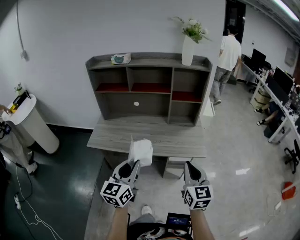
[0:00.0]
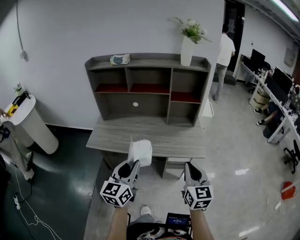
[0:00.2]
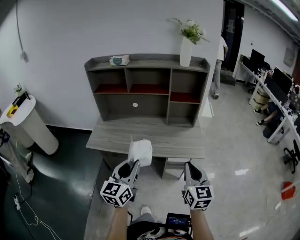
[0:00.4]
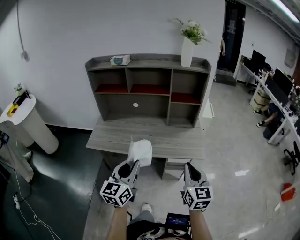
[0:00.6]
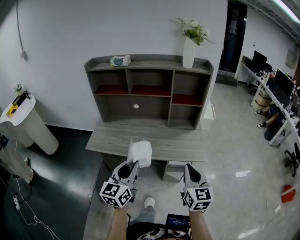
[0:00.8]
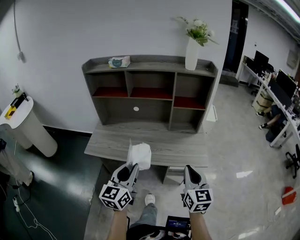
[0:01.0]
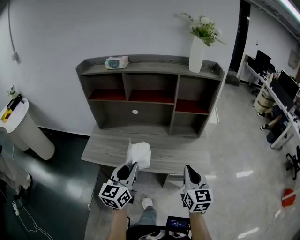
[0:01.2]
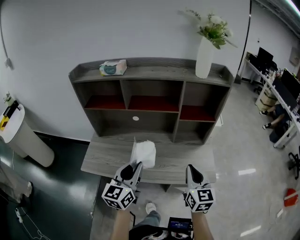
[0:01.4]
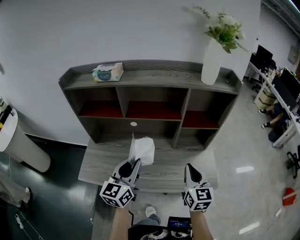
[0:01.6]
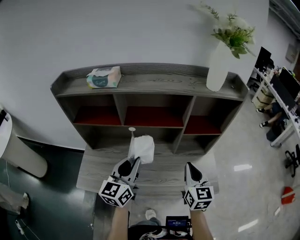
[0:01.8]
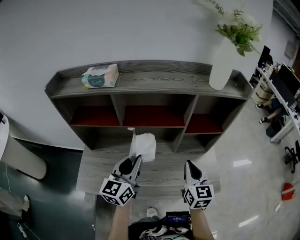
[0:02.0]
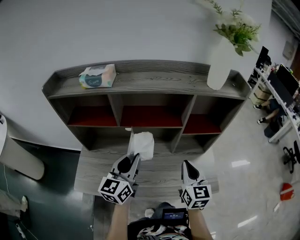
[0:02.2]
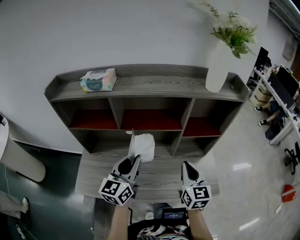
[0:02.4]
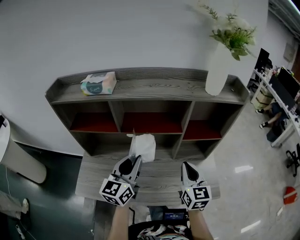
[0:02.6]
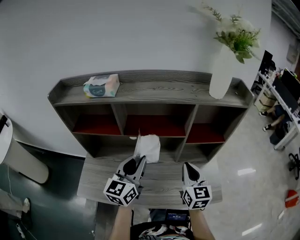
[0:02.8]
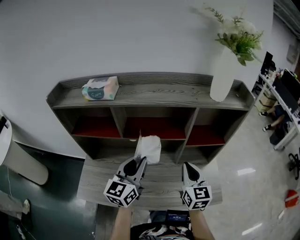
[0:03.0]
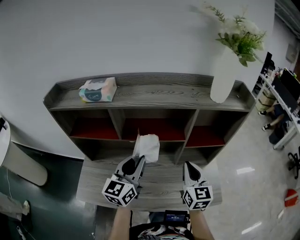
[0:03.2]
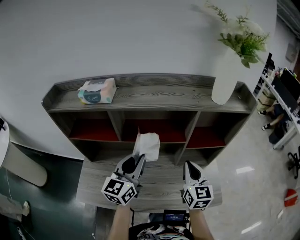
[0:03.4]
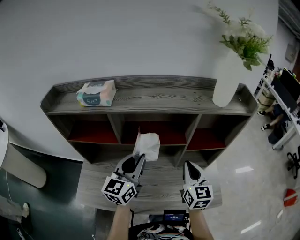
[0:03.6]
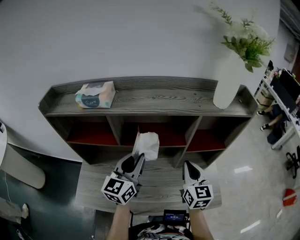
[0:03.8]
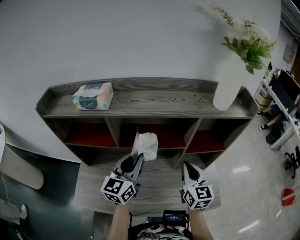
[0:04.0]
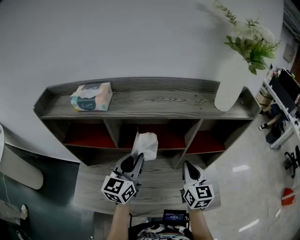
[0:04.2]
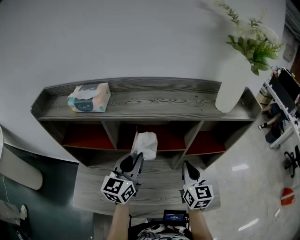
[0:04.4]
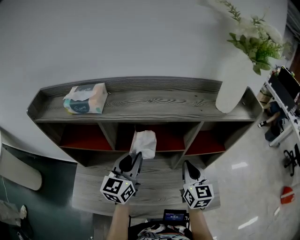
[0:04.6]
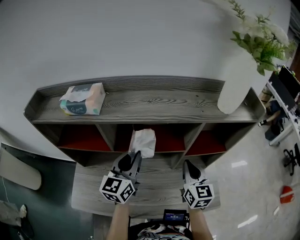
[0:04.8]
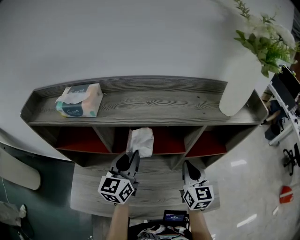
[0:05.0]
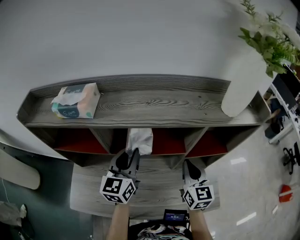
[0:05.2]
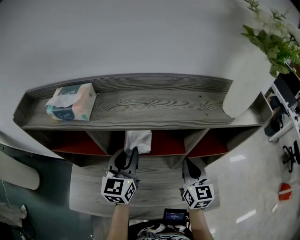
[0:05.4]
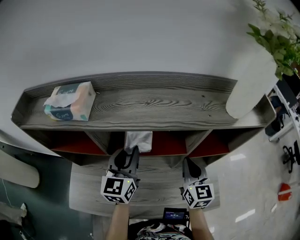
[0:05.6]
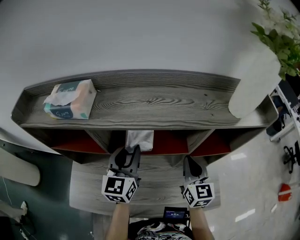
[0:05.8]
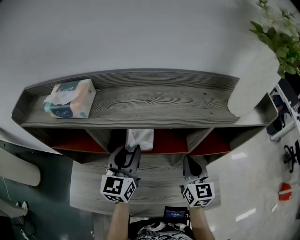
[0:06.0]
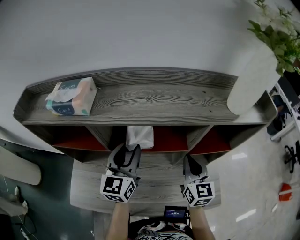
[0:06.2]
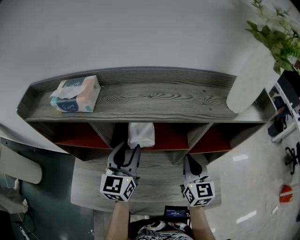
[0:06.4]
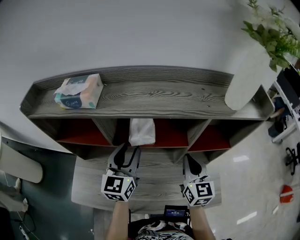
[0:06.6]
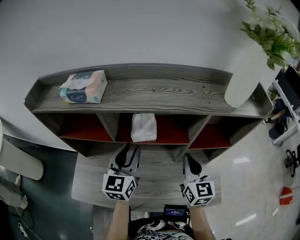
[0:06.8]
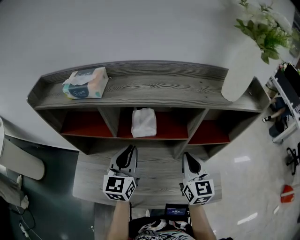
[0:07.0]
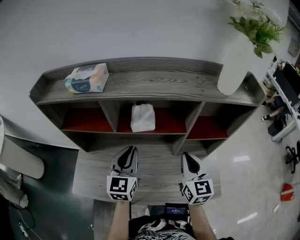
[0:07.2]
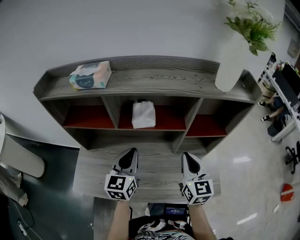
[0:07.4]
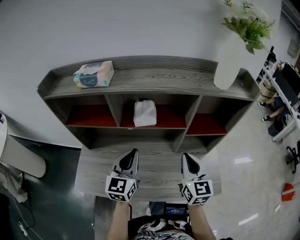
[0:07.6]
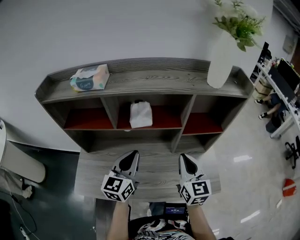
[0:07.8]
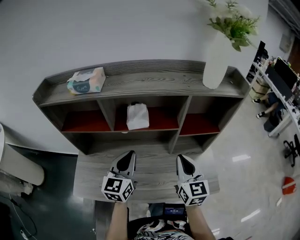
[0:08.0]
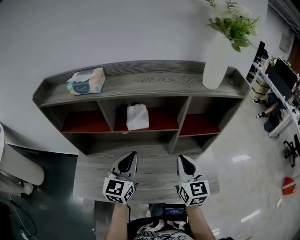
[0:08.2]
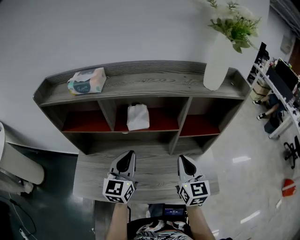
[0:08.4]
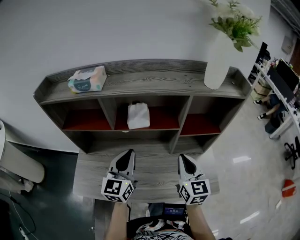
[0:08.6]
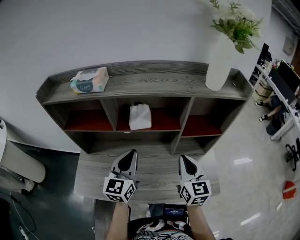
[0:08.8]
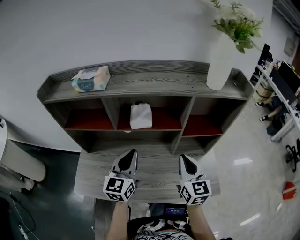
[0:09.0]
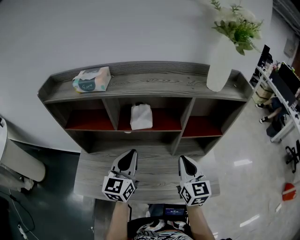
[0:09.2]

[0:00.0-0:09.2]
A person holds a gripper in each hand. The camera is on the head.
0.0 to 1.6 s: The two grippers go roughly 30 cm forward.
1.6 to 3.0 s: Both grippers travel together forward, approximately 10 cm.
3.0 to 4.6 s: Both grippers travel together forward, about 10 cm.
4.6 to 6.2 s: The grippers stay close to where they were, moving slightly.
6.2 to 7.6 s: The two grippers go roughly 10 cm backward. The left gripper closes its fingers.
7.6 to 9.2 s: The grippers make only small movements.

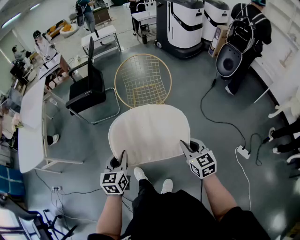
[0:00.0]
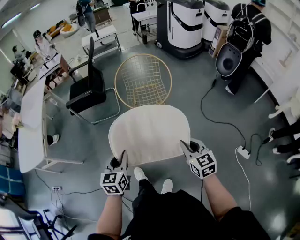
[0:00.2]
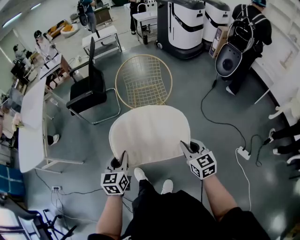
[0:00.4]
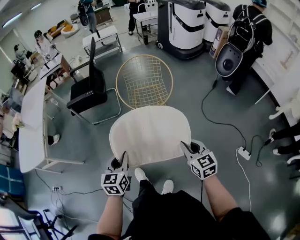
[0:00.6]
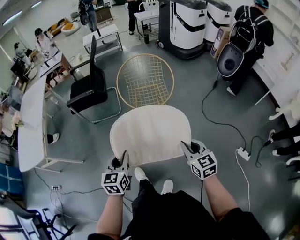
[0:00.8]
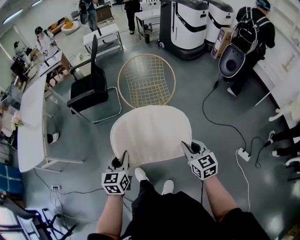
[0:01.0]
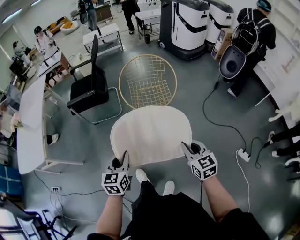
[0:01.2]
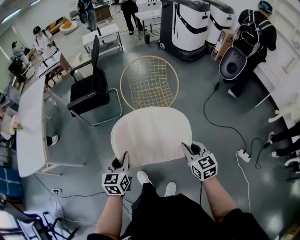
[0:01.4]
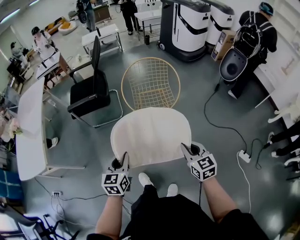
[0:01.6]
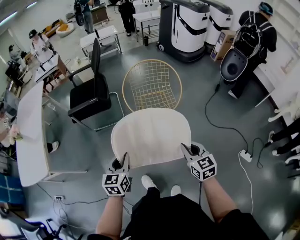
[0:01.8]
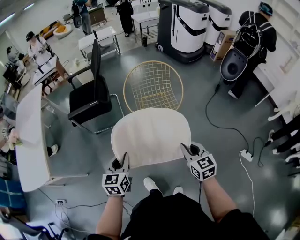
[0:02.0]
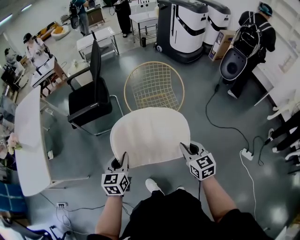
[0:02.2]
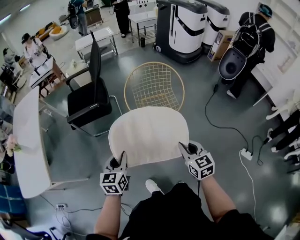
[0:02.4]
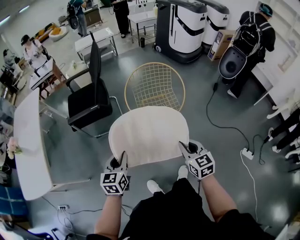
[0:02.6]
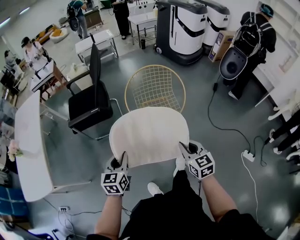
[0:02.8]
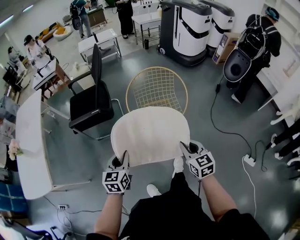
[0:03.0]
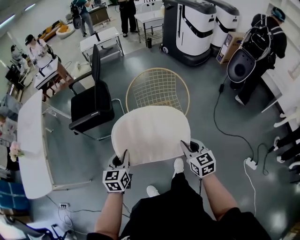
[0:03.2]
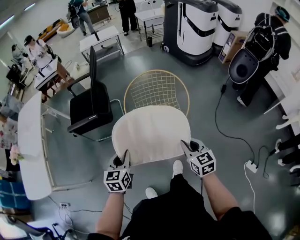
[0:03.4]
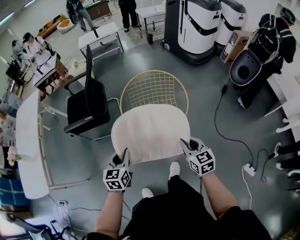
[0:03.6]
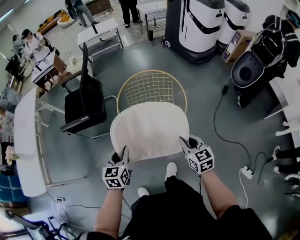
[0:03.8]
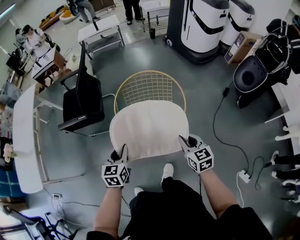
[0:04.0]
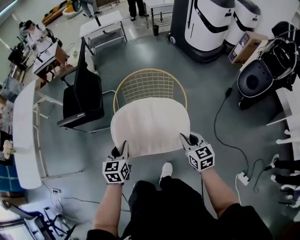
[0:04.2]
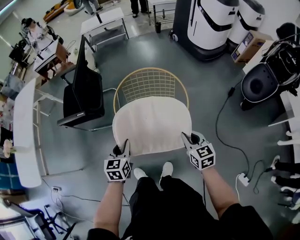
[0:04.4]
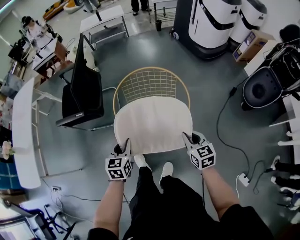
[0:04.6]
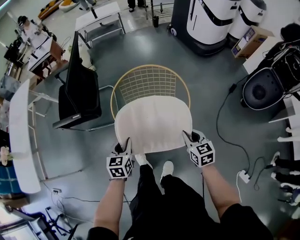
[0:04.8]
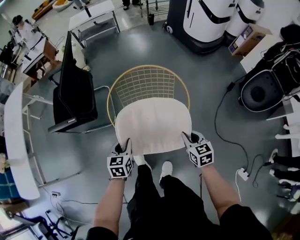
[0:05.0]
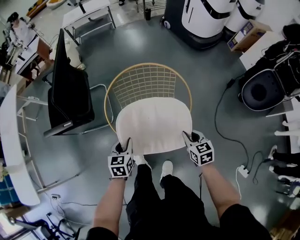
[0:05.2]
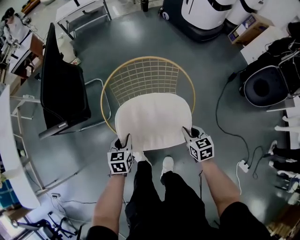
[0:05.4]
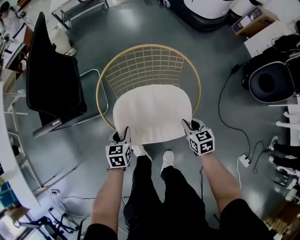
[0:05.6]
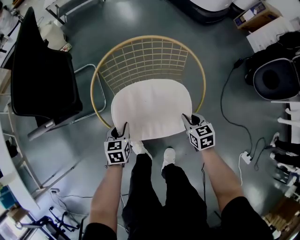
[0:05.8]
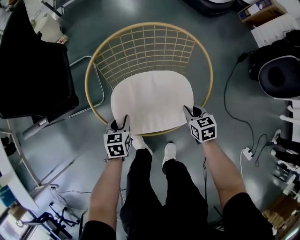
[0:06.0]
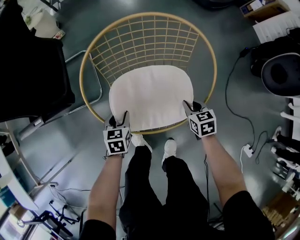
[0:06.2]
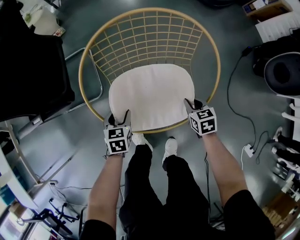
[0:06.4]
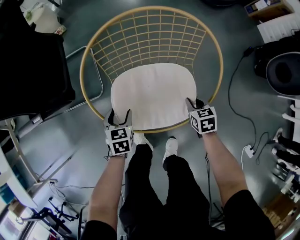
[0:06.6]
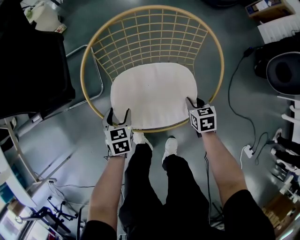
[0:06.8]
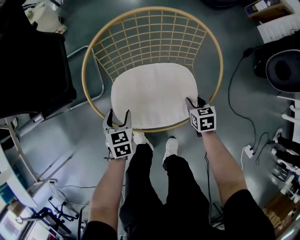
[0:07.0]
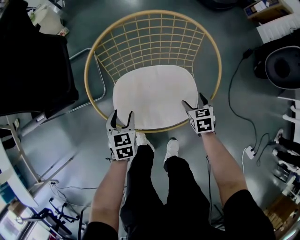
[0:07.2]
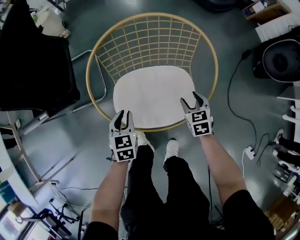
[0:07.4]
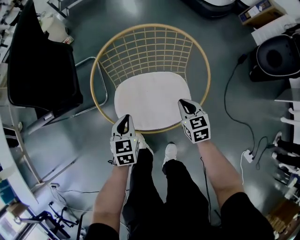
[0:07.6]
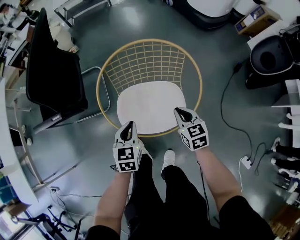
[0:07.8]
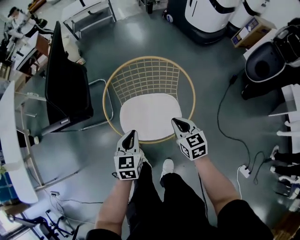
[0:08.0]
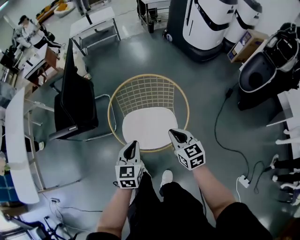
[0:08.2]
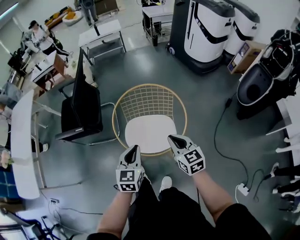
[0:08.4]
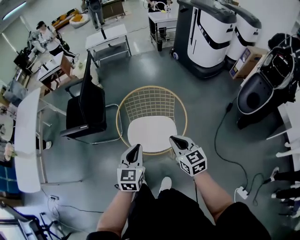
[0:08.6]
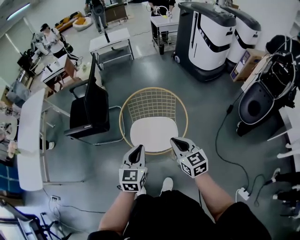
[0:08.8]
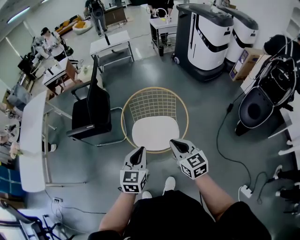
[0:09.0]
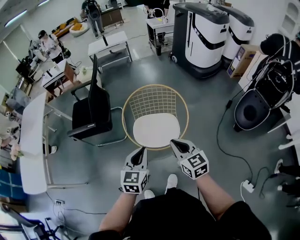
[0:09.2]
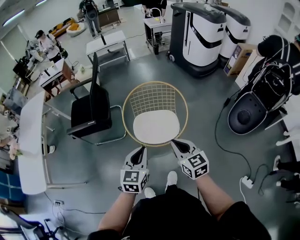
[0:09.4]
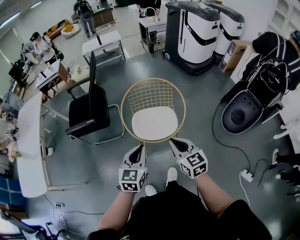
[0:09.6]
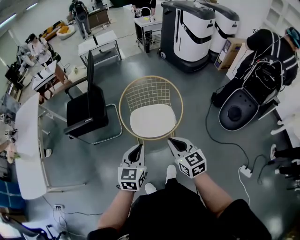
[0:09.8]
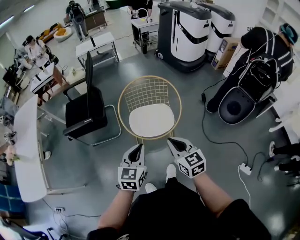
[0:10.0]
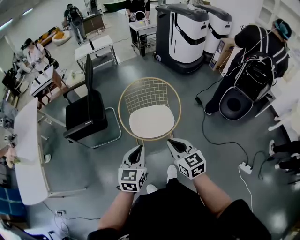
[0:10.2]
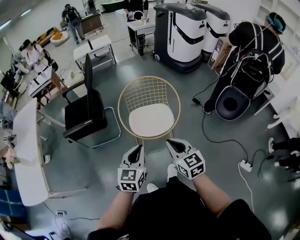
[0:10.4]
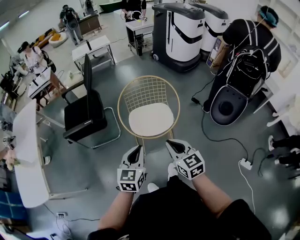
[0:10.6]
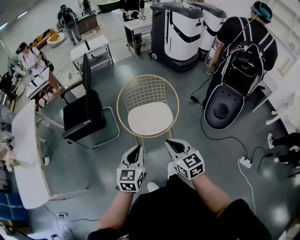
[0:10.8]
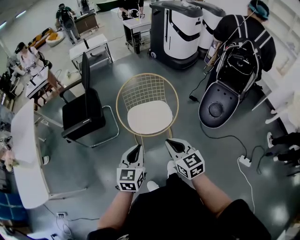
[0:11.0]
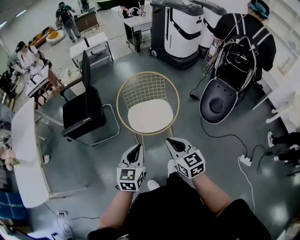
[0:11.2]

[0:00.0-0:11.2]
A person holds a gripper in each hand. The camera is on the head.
0.0 to 1.6 s: The grippers both shift forward and to the left by about 10 cm.
1.6 to 3.2 s: The two grippers go about 20 cm forward.
3.2 to 4.8 s: Both grippers move forward, to the right and downward, about 30 cm.
4.8 to 6.4 s: The right gripper travels downward by about 30 cm, and swivels some 20 degrees. Meanwhile the left gripper heads downward and forward, covering roughly 35 cm, and opens its fingers.
6.4 to 8.0 s: The two grippers go roughly 25 cm upward. The right gripper rotates about 20 degrees, and opens and closes again. The left gripper rotates about 20 degrees, and closes up.
8.0 to 9.6 s: Both grippers move backward and upward, some 35 cm.
9.6 to 11.2 s: Both grippers travel together backward, roughly 5 cm.

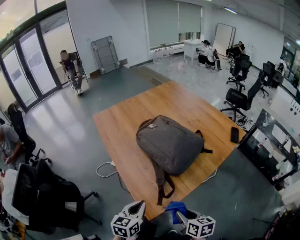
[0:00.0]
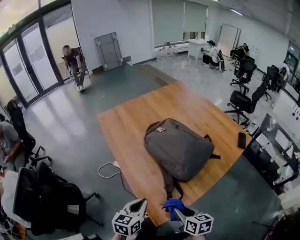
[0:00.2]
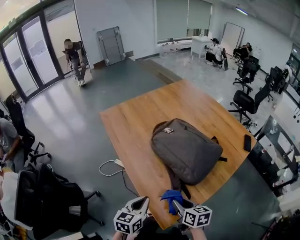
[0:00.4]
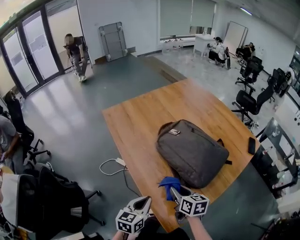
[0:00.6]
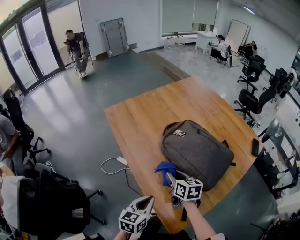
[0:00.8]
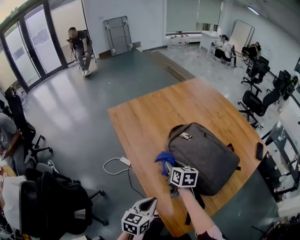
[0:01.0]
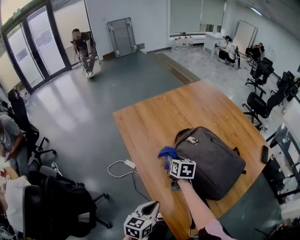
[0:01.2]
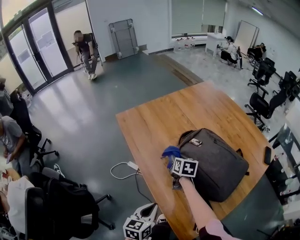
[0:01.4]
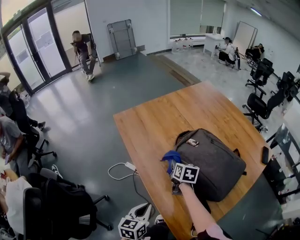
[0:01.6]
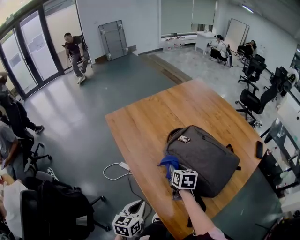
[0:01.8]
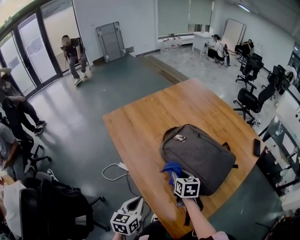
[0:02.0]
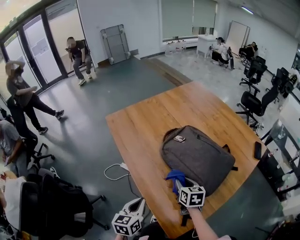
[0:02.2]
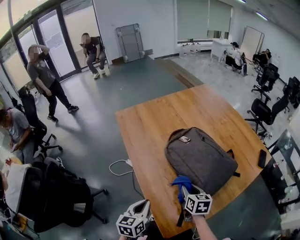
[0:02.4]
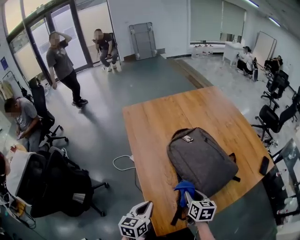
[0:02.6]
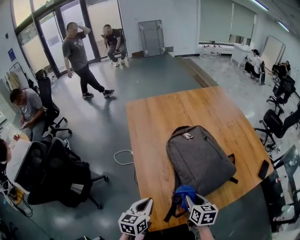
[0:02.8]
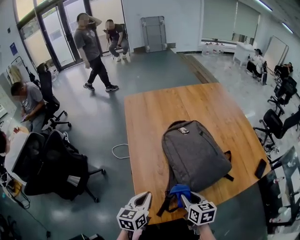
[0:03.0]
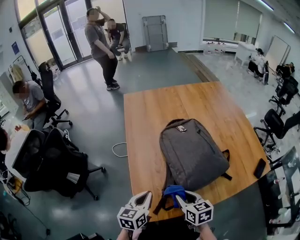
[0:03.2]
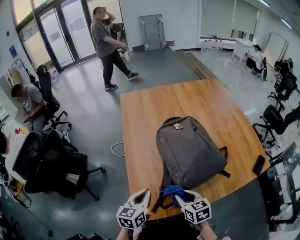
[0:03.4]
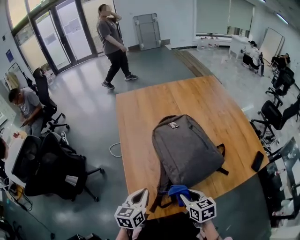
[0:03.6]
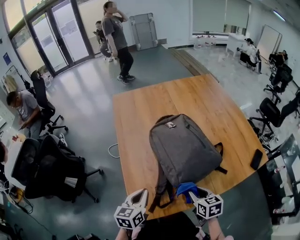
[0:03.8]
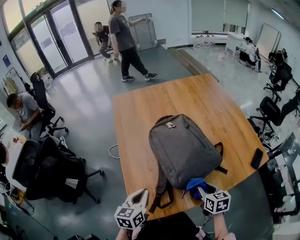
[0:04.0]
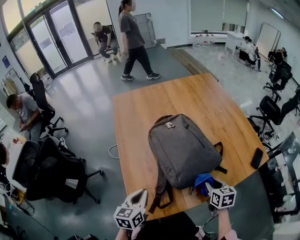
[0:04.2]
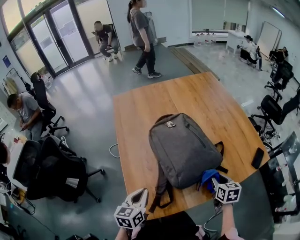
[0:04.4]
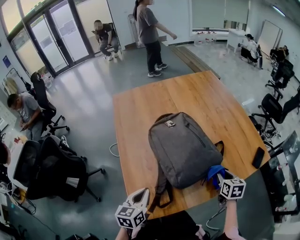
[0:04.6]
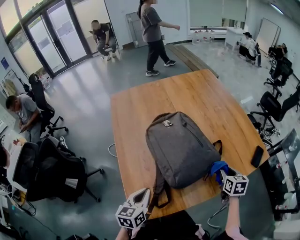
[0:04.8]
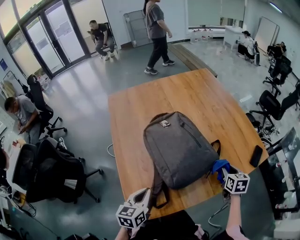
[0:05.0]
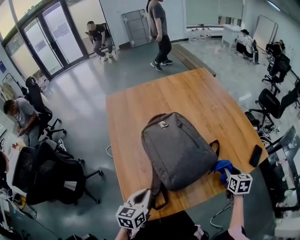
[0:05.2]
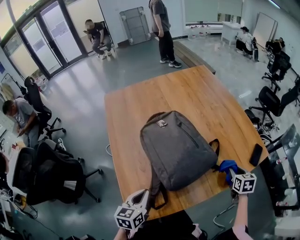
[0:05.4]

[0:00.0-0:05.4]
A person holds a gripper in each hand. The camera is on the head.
0.0 to 1.4 s: The right gripper goes some 60 cm forward and to the left, while the left gripper travels to the left and forward by some 25 cm.
1.4 to 2.8 s: The left gripper travels to the right and backward by about 15 cm, while the right gripper travels backward and to the right by some 35 cm.
2.8 to 4.0 s: The right gripper goes roughly 15 cm to the right, while the left gripper heads to the right, covering approximately 10 cm.
4.0 to 5.4 s: The right gripper is displaced to the right and forward by about 25 cm.
